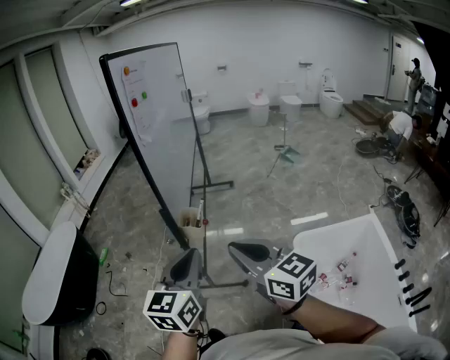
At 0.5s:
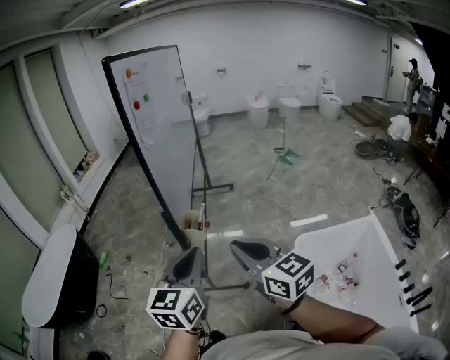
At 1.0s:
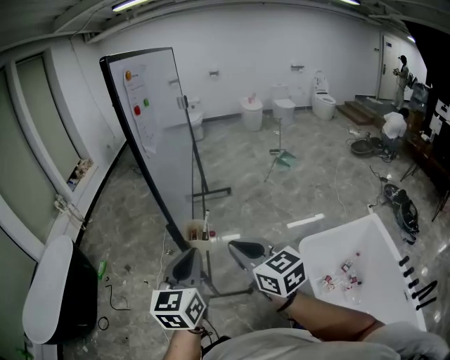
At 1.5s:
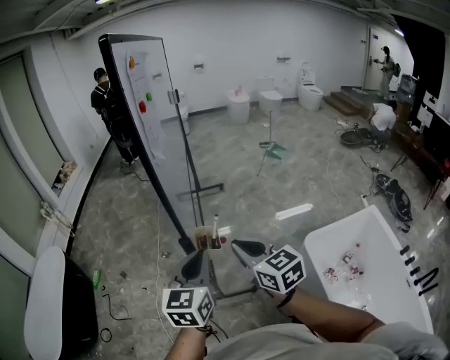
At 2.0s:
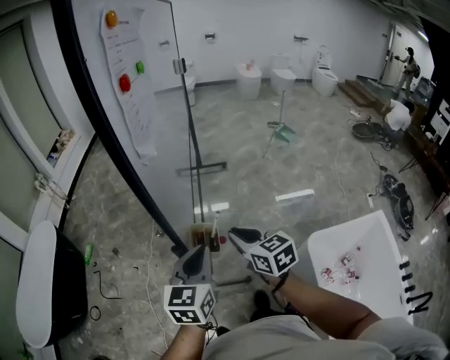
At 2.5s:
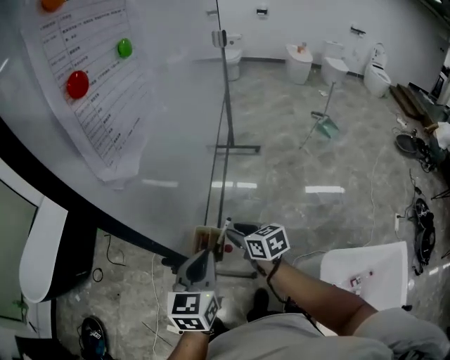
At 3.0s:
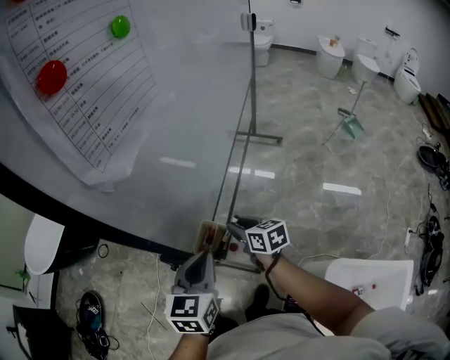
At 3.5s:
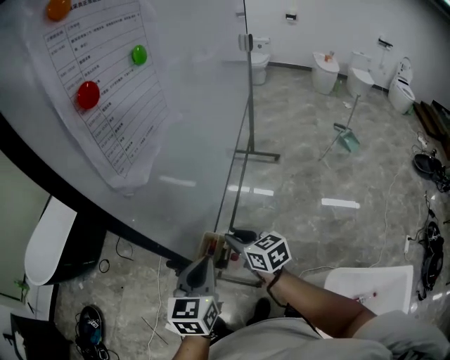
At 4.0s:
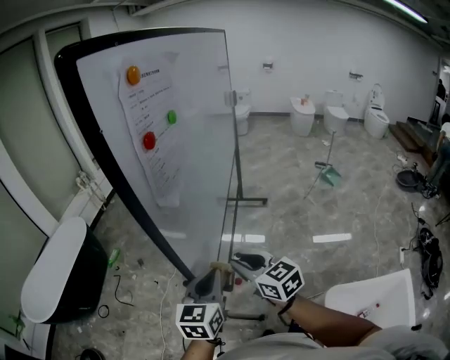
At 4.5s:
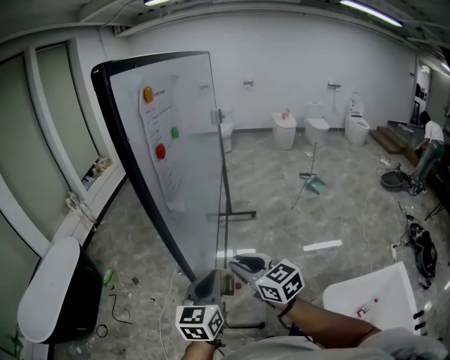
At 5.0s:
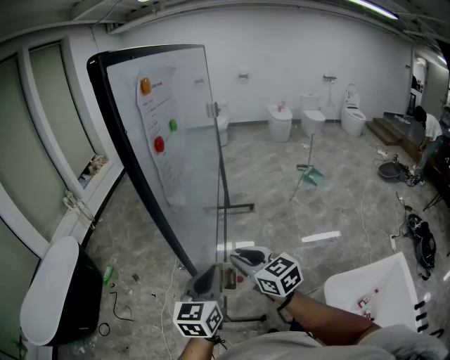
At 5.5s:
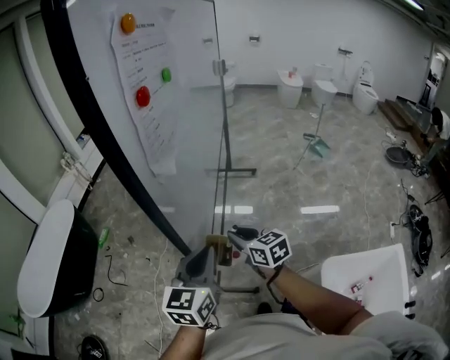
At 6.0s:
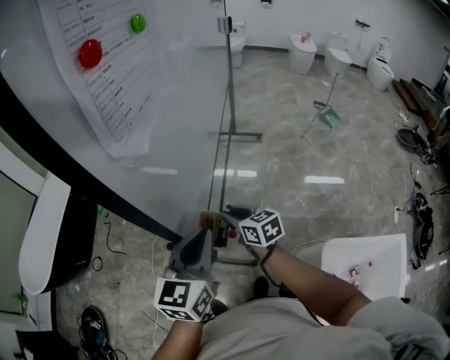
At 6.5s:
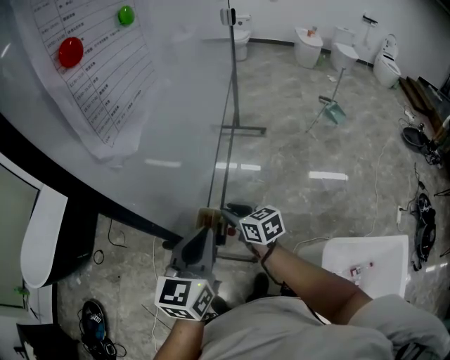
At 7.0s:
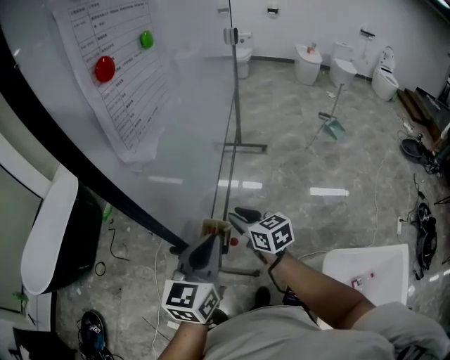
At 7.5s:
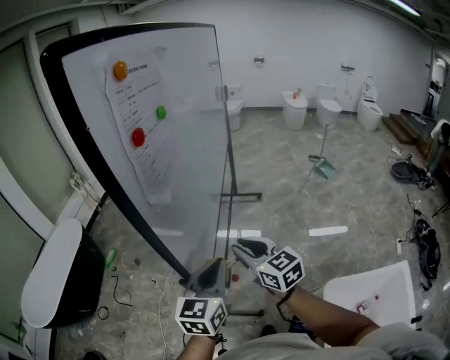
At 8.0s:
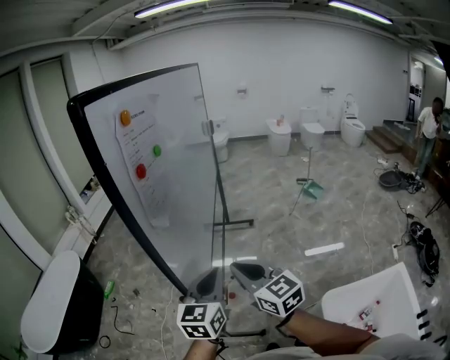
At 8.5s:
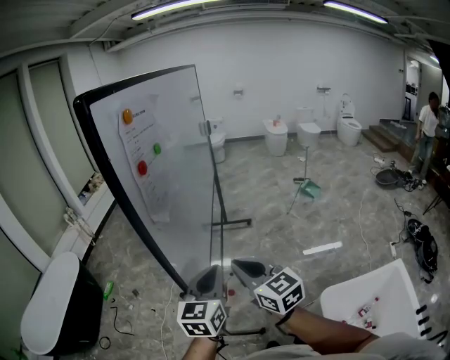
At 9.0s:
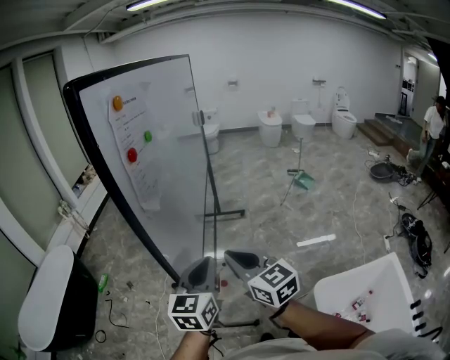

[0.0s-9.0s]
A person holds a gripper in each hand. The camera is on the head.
0.0s to 2.0s: The right gripper is displaced forward and downward by roughly 35 cm, and changes its angle by about 20 degrees. The left gripper goes about 25 cm forward.
2.0s to 4.5s: The right gripper travels upward by roughly 10 cm.
4.5s to 7.0s: The right gripper heads downward and forward, covering roughly 20 cm.
7.0s to 9.0s: The right gripper heads upward and backward, covering roughly 25 cm, rotates about 30 degrees, and closes; the left gripper moves upward, approximately 10 cm.

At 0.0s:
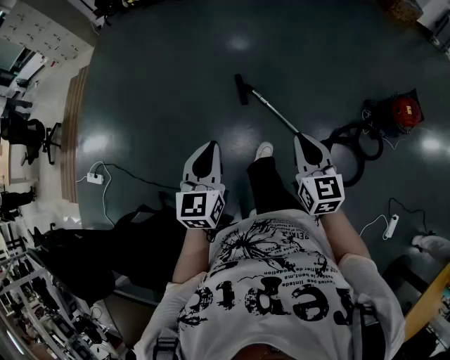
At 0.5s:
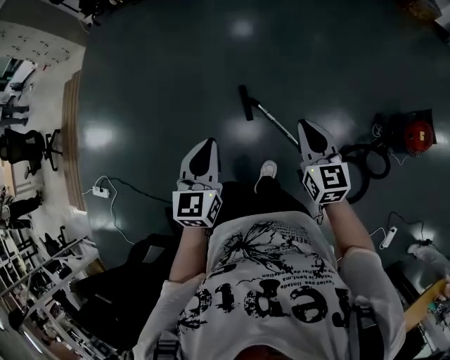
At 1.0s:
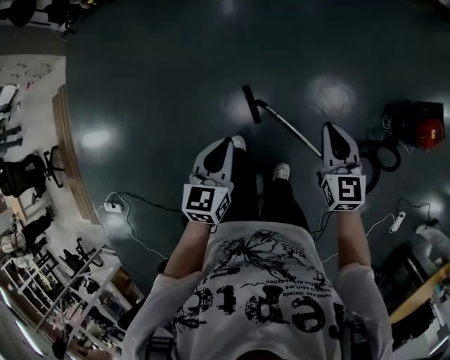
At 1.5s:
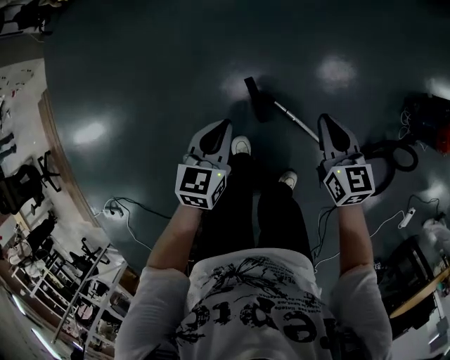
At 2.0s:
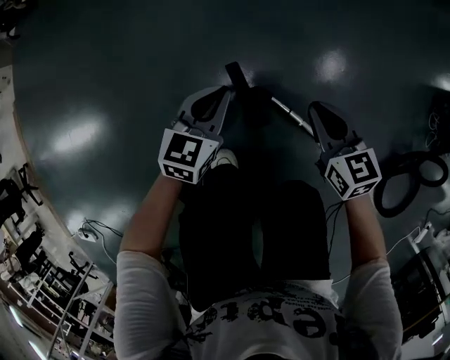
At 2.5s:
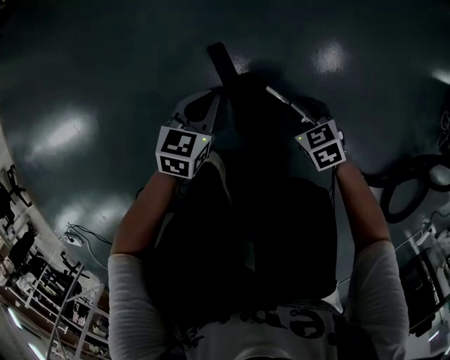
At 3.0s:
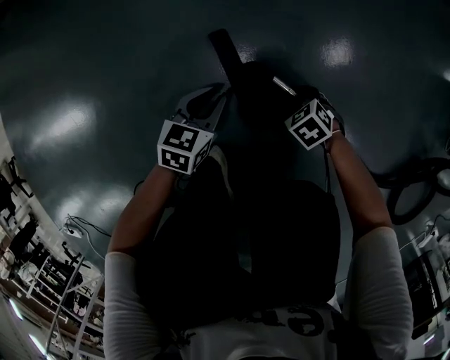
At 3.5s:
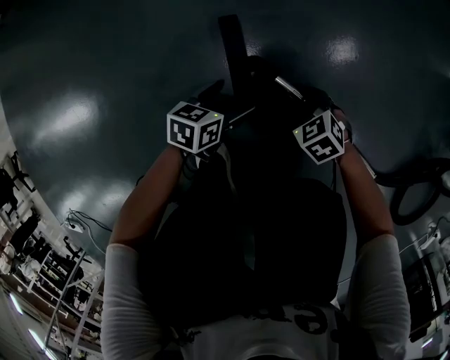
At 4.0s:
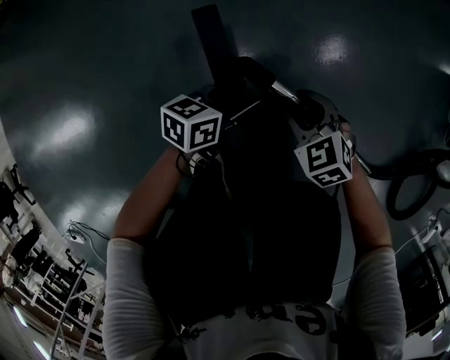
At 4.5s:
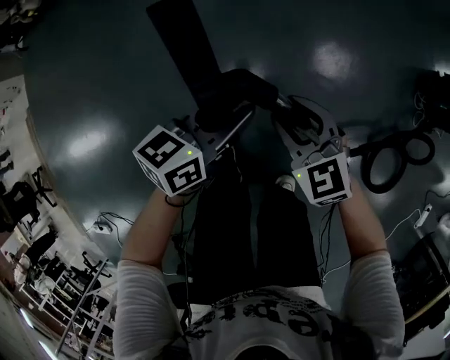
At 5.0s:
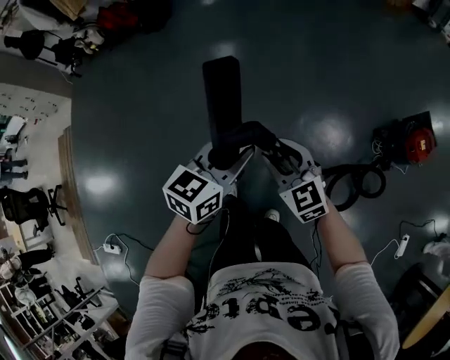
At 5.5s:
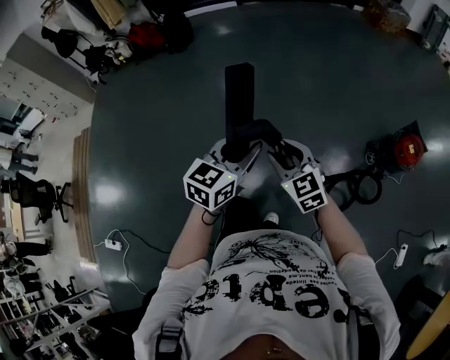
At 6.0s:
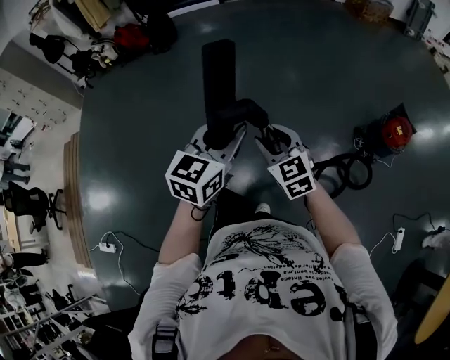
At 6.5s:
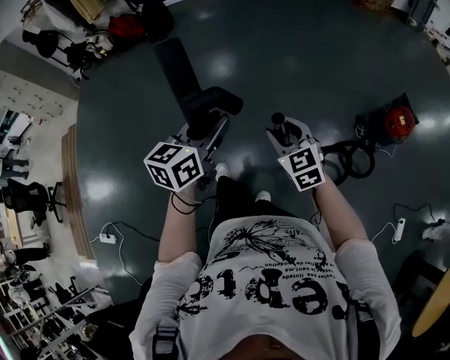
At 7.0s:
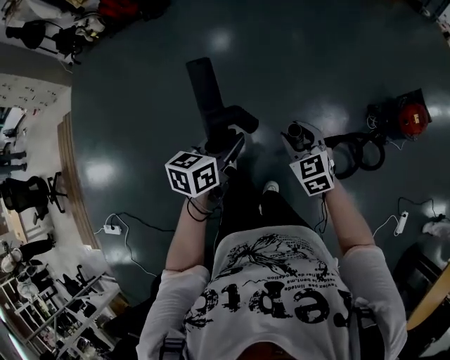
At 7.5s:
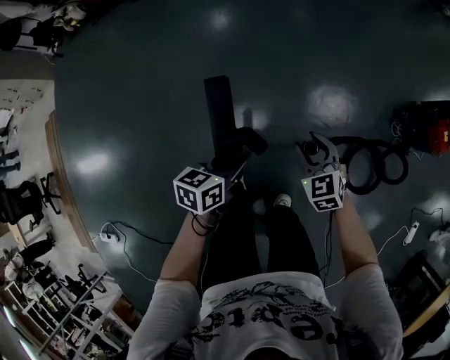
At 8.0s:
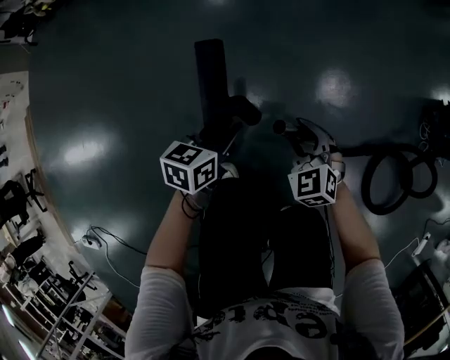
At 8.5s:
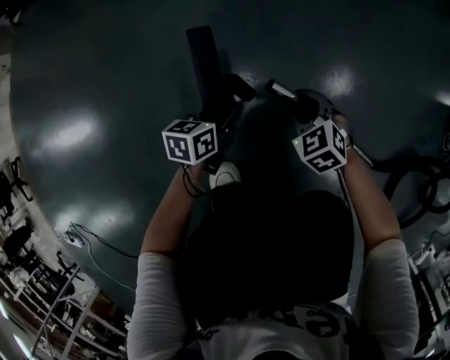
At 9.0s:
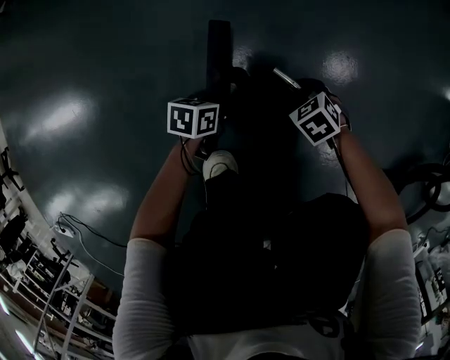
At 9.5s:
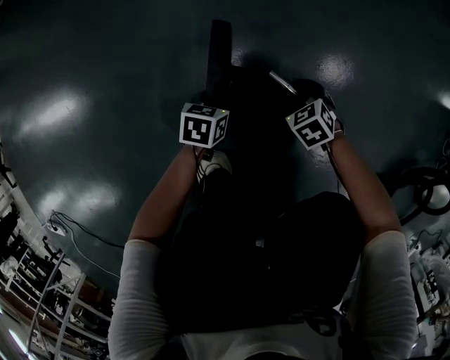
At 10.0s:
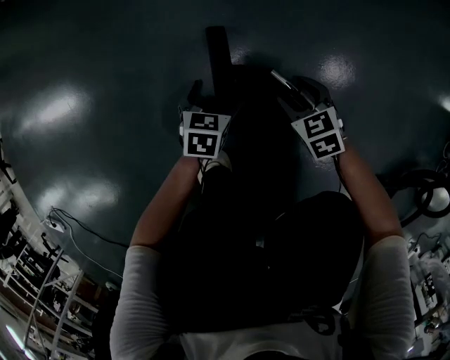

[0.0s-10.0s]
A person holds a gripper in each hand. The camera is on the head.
0.0s to 2.0s: The two grippers travel together, forward, about 60 cm. Both grippers travel together downward, some 60 cm. The left gripper rotates about 40 degrees.
2.0s to 4.0s: The right gripper shifts about 20 cm downward, rotates approximately 40 degrees, and opens its fingers. Meanwhile the left gripper goes roughly 25 cm downward and to the right, changes its angle by about 40 degrees, and opens up.
4.0s to 6.0s: Both grippers move upward, about 90 cm. The right gripper tips its fingers upward by some 30 degrees. The left gripper rotates roughly 50 degrees.
6.0s to 8.0s: Both grippers travel together downward, about 70 cm. The left gripper rotates roughly 40 degrees; the right gripper turns by roughly 20 degrees.
8.0s to 10.0s: Both grippers move downward, about 35 cm. The left gripper changes its angle by roughly 20 degrees, and opens up. Meanwhile the right gripper turns by about 20 degrees.

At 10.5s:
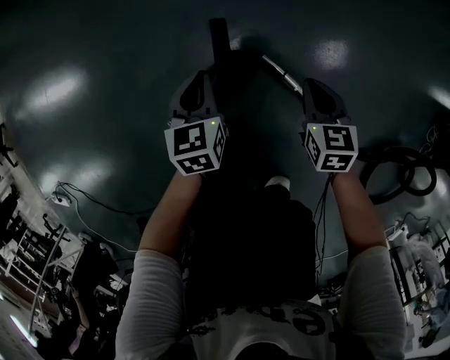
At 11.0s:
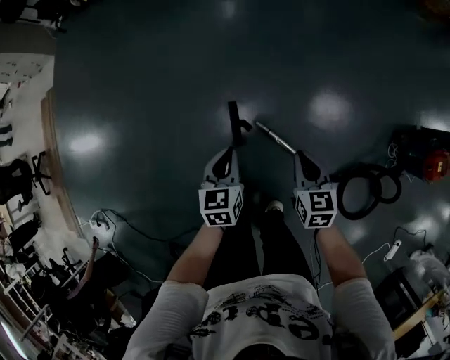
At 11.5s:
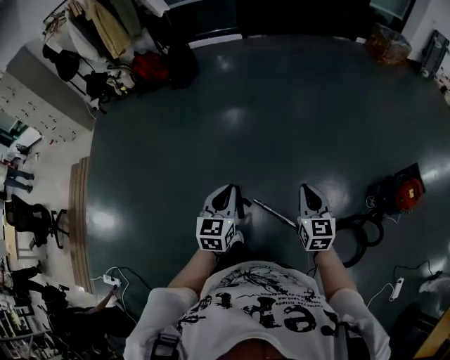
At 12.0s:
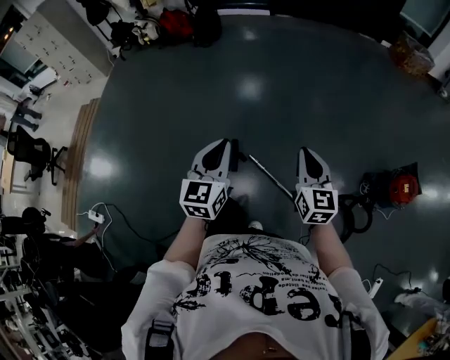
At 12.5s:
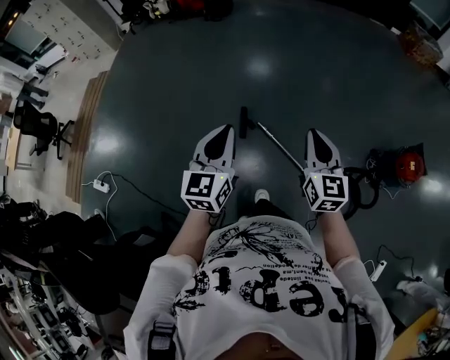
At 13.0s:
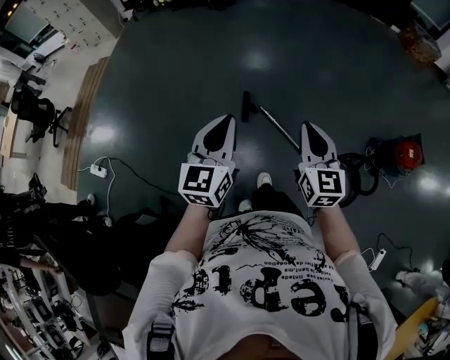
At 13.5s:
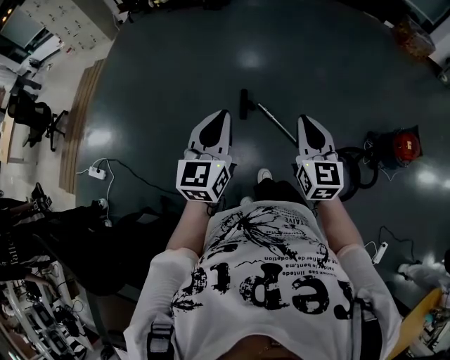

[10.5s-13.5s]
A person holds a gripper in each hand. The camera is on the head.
10.5s to 12.0s: The grippers both shift upward by about 80 cm. The left gripper angles its fingers upward, by some 40 degrees; the right gripper points its fingers roughly 40 degrees further upward.
12.0s to 13.5s: The right gripper travels backward and to the left by approximately 30 cm, while the left gripper travels backward by roughly 30 cm.

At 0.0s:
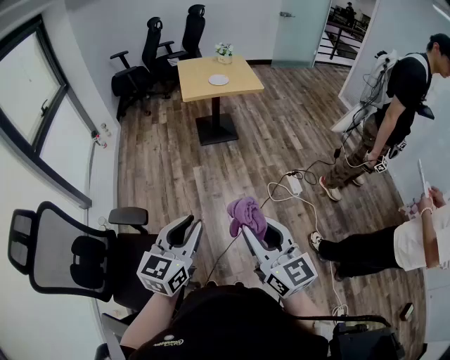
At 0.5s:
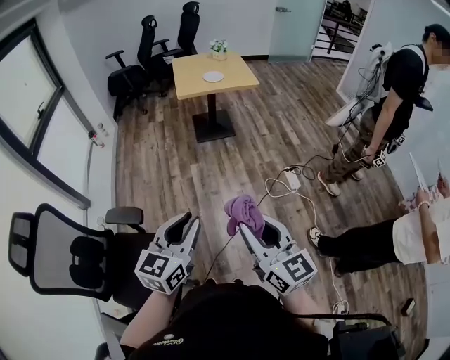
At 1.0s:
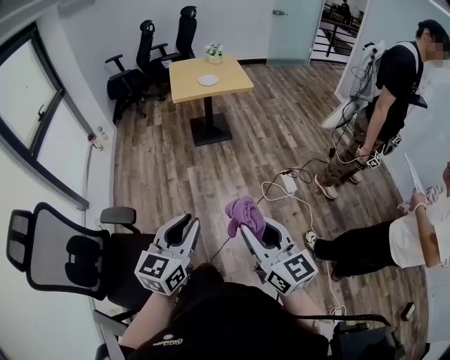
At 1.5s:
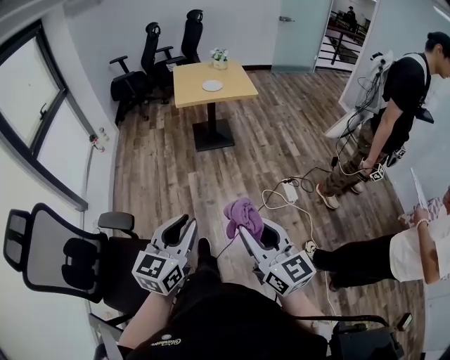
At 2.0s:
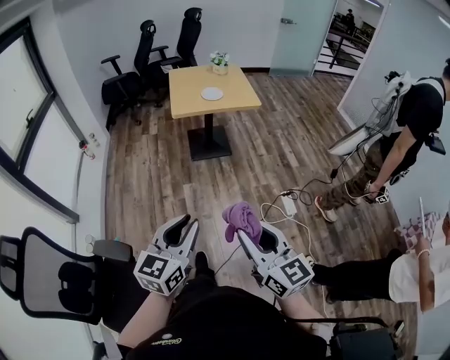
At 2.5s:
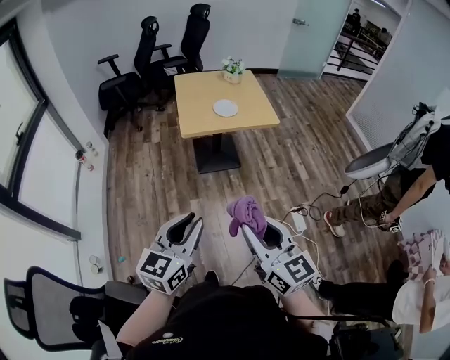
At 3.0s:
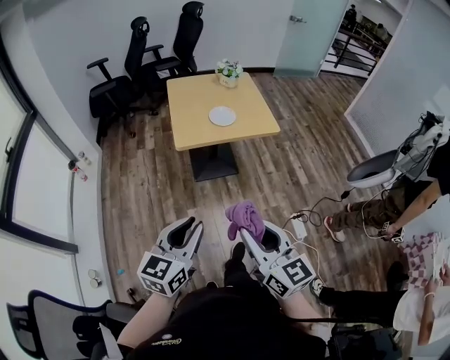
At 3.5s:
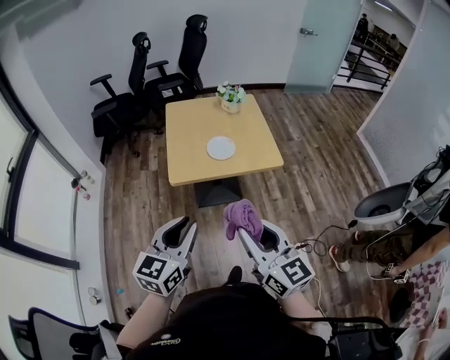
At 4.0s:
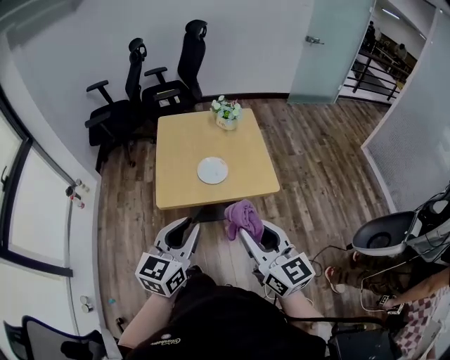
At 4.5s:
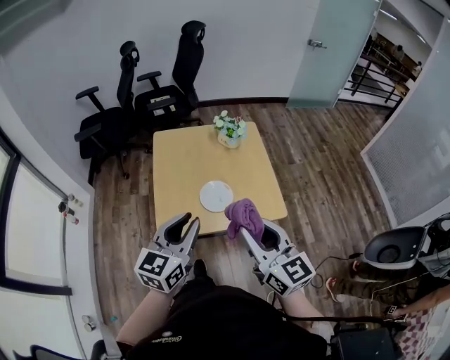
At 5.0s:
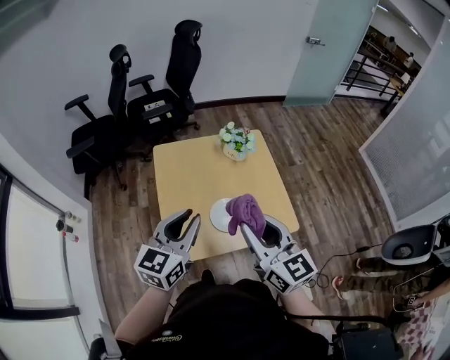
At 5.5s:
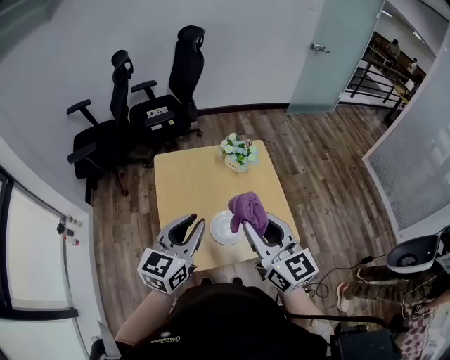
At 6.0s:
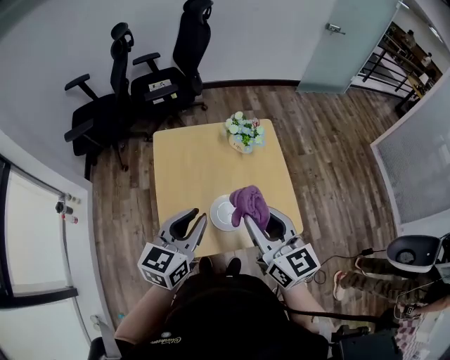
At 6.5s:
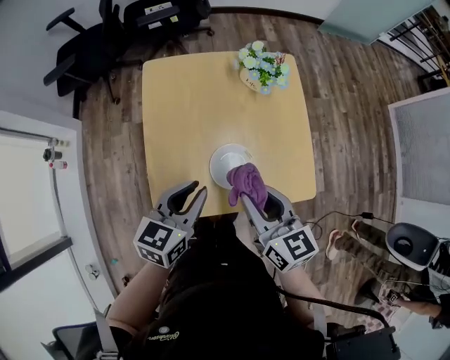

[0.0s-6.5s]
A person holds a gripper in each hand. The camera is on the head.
0.0s to 2.0s: Both grippers travel together forward, about 15 cm.
2.0s to 4.5s: The two grippers travel together, forward, about 70 cm.
4.5s to 6.5s: The grippers both shift forward and downward by roughly 25 cm. The right gripper swivels some 20 degrees, while the left gripper turns by roughly 20 degrees.
